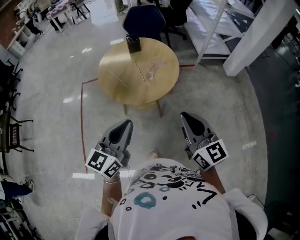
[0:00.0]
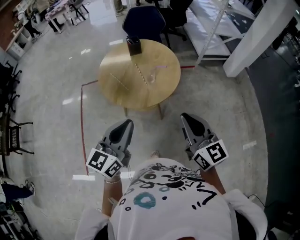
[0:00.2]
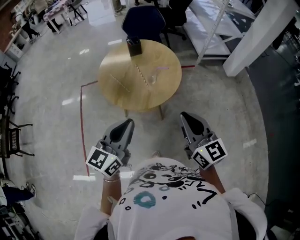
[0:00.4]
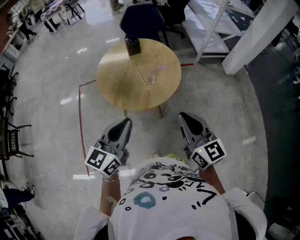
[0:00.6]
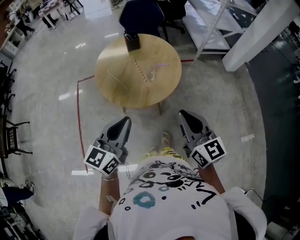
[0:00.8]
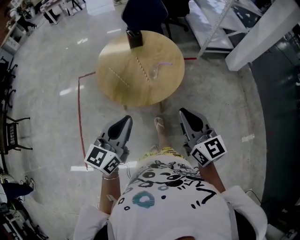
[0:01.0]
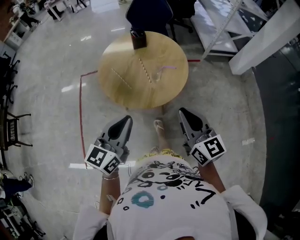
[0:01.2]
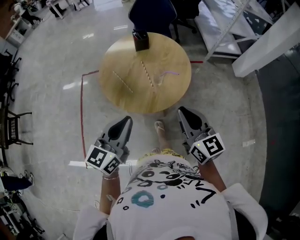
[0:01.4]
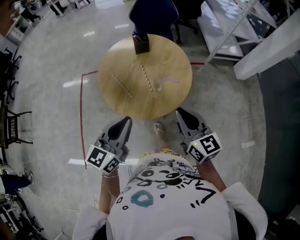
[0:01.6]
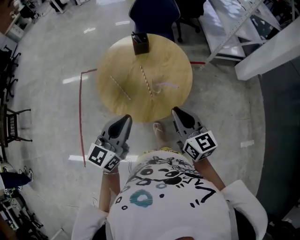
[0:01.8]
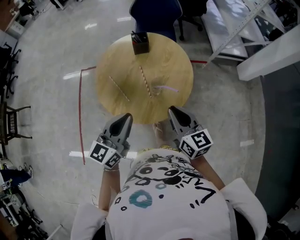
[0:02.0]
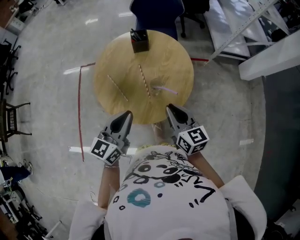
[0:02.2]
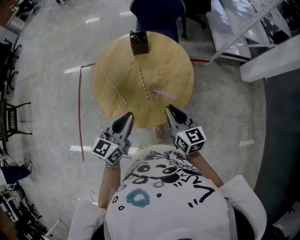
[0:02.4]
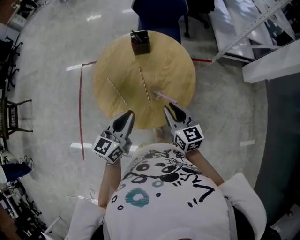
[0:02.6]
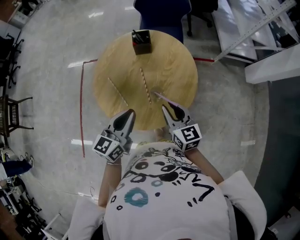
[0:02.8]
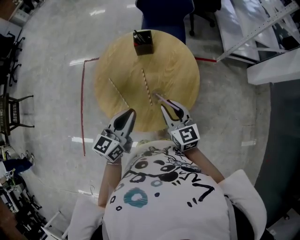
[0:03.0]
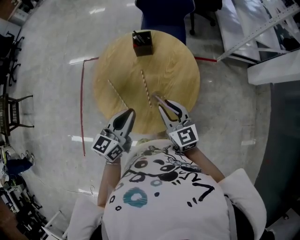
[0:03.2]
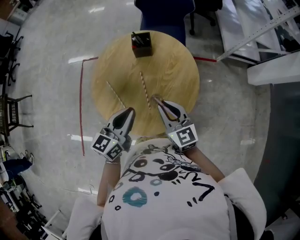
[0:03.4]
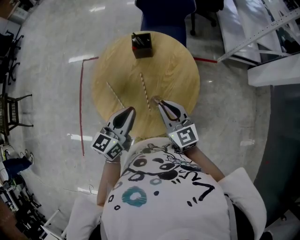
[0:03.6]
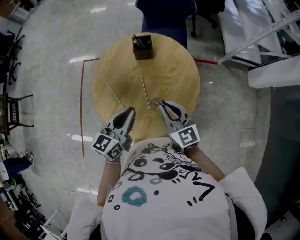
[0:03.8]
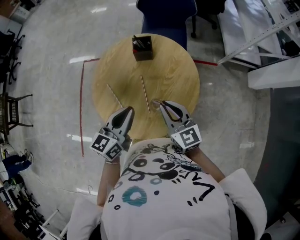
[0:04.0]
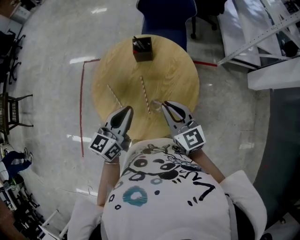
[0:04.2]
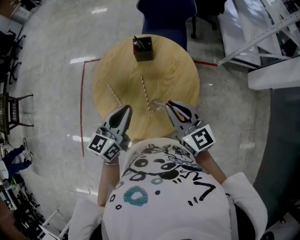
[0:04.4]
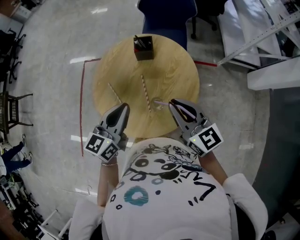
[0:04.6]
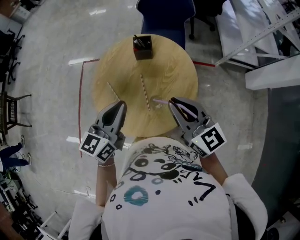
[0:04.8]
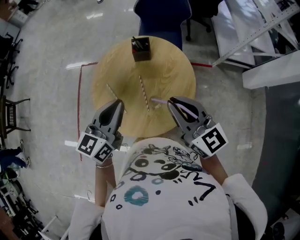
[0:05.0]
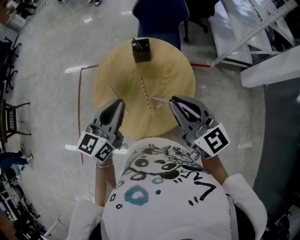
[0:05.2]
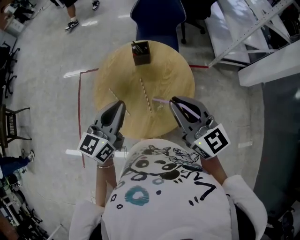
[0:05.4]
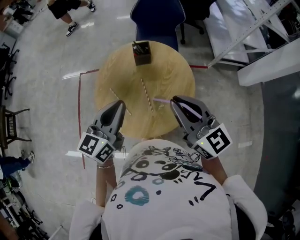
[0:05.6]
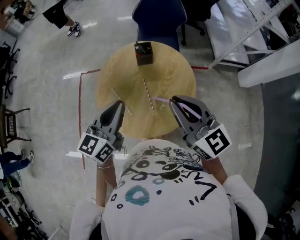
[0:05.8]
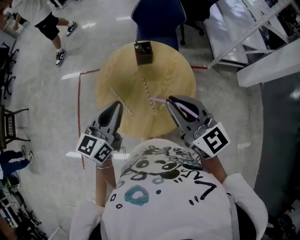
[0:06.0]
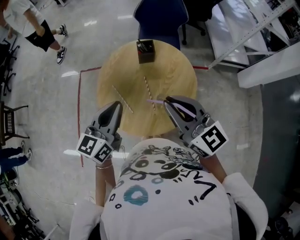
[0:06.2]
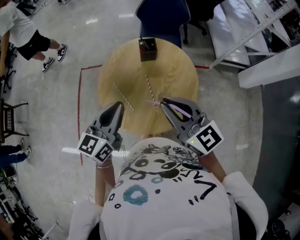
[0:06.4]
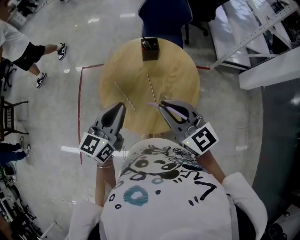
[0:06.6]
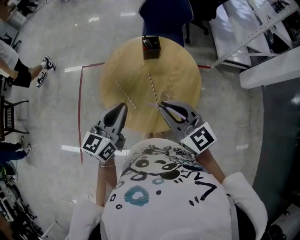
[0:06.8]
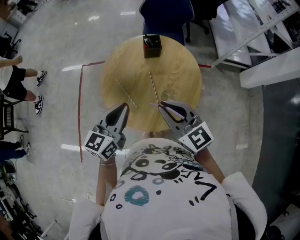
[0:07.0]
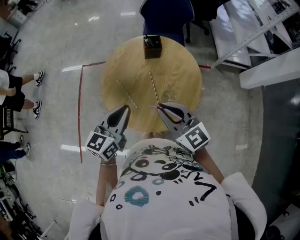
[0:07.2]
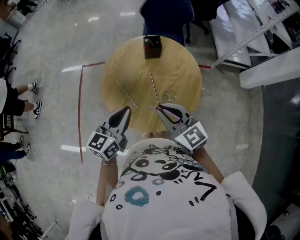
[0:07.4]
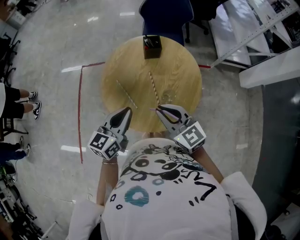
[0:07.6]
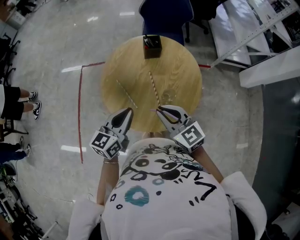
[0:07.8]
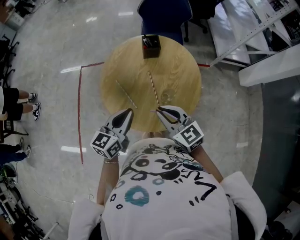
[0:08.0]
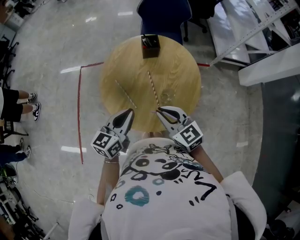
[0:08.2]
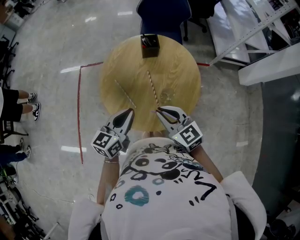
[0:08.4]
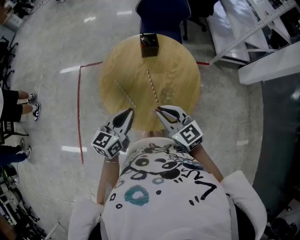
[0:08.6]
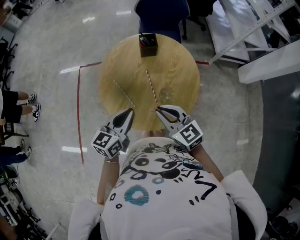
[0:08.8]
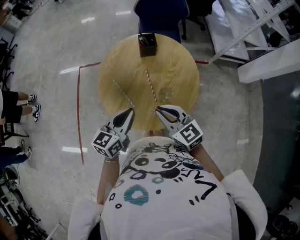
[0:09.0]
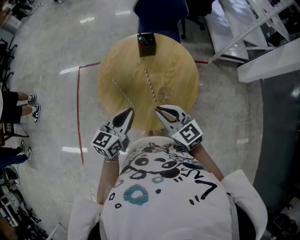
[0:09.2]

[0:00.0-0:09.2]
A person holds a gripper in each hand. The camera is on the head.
0:00.0 to 0:01.6: The left gripper is displaced forward by roughly 15 cm, while the right gripper travels forward and downward by approximately 20 cm.
0:01.6 to 0:03.0: Both grippers move forward and downward, about 20 cm.
0:03.0 to 0:04.6: The left gripper goes approximately 5 cm forward, while the right gripper heads upward, covering roughly 10 cm.
0:04.6 to 0:06.2: The right gripper heads upward and to the left, covering roughly 10 cm. Meanwhile the left gripper goes about 10 cm to the left and upward.
0:06.2 to 0:07.6: The right gripper moves downward and to the left, roughly 15 cm. Meanwhile the left gripper shifts approximately 10 cm downward.
0:07.6 to 0:09.2: There are only small adjustments of the grippers.

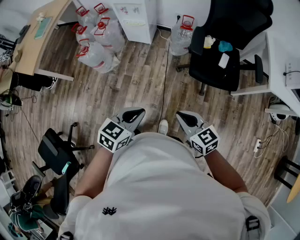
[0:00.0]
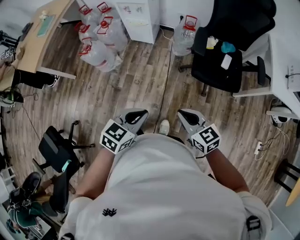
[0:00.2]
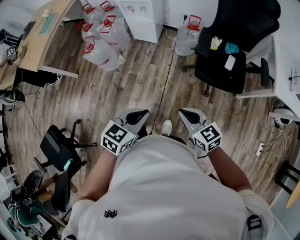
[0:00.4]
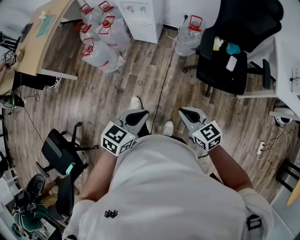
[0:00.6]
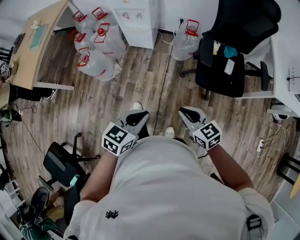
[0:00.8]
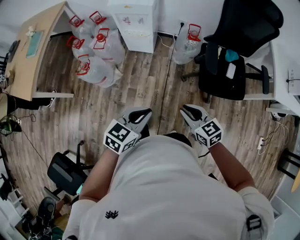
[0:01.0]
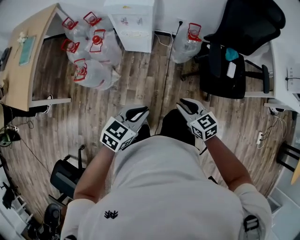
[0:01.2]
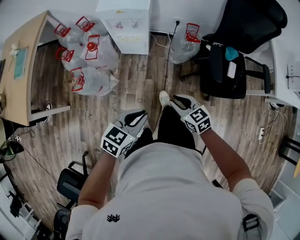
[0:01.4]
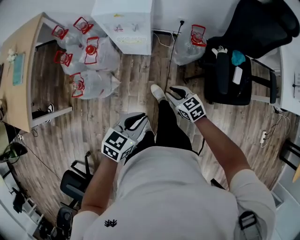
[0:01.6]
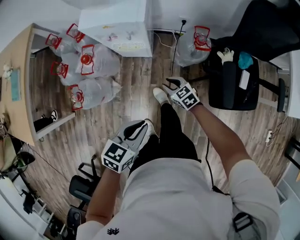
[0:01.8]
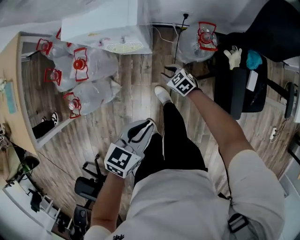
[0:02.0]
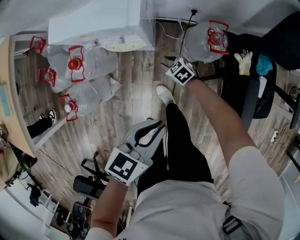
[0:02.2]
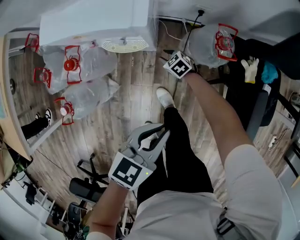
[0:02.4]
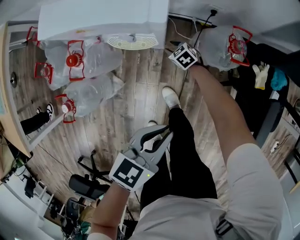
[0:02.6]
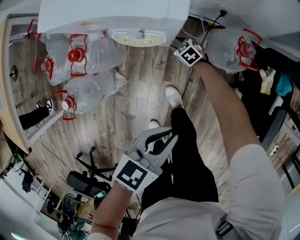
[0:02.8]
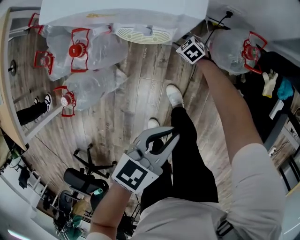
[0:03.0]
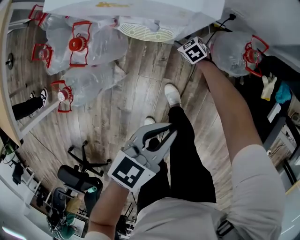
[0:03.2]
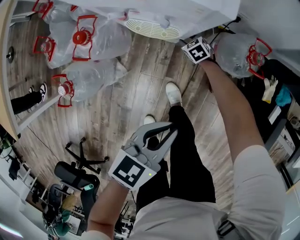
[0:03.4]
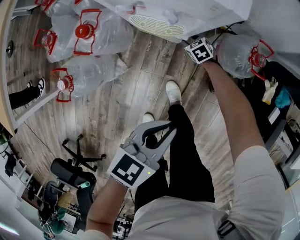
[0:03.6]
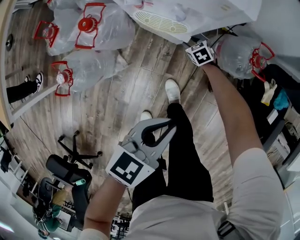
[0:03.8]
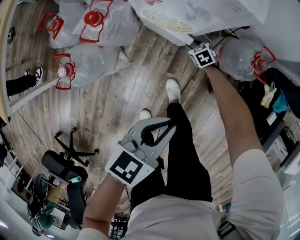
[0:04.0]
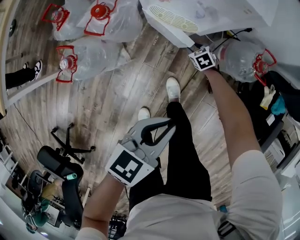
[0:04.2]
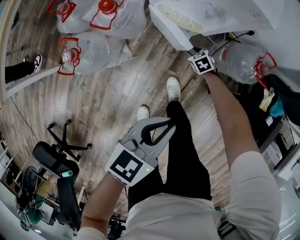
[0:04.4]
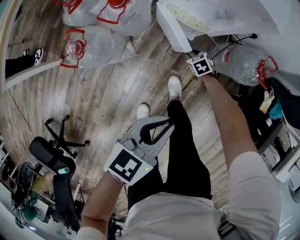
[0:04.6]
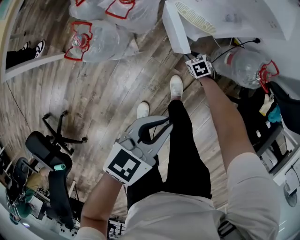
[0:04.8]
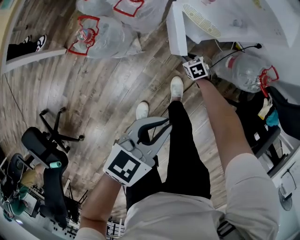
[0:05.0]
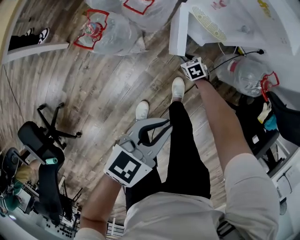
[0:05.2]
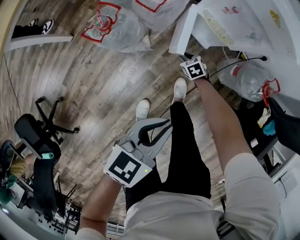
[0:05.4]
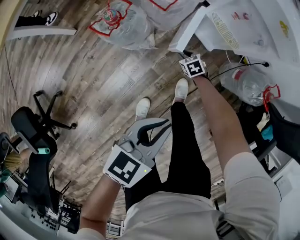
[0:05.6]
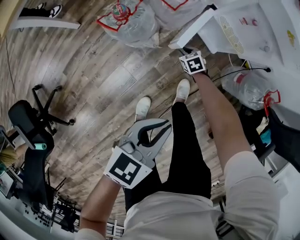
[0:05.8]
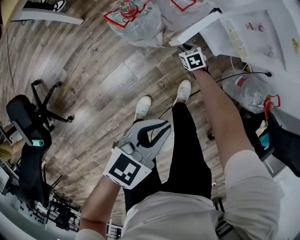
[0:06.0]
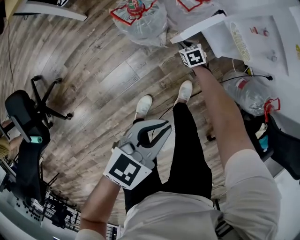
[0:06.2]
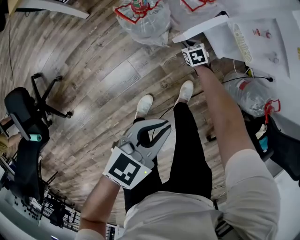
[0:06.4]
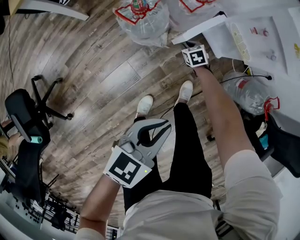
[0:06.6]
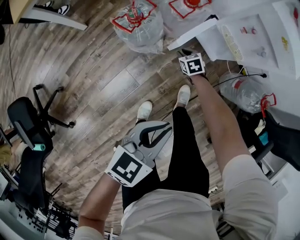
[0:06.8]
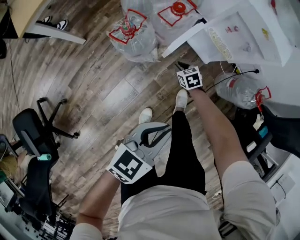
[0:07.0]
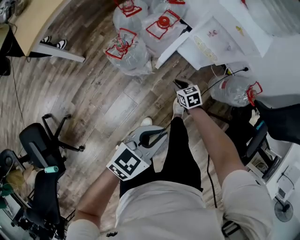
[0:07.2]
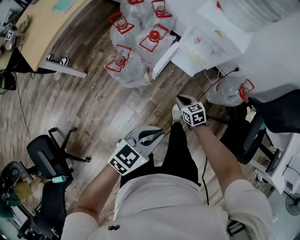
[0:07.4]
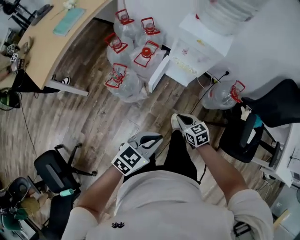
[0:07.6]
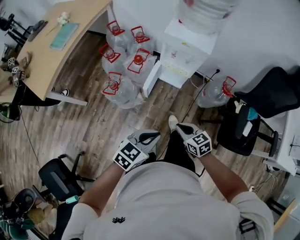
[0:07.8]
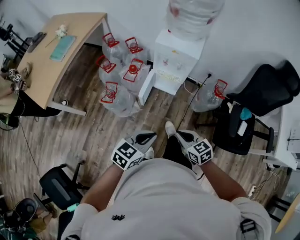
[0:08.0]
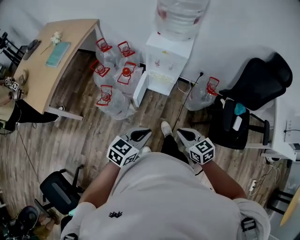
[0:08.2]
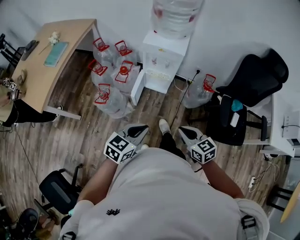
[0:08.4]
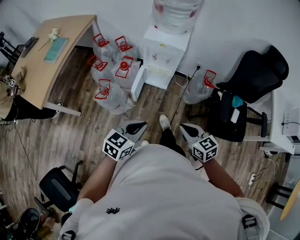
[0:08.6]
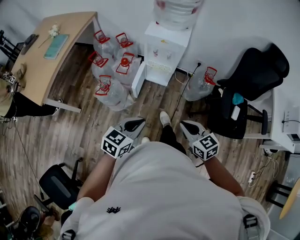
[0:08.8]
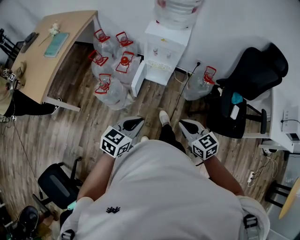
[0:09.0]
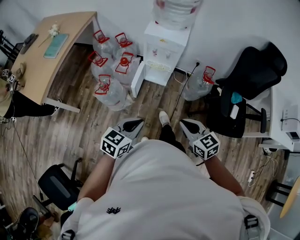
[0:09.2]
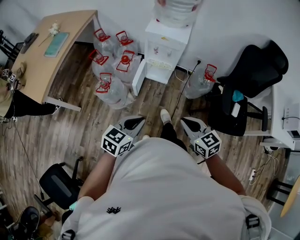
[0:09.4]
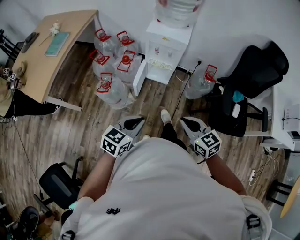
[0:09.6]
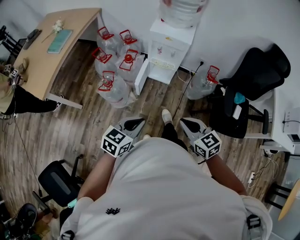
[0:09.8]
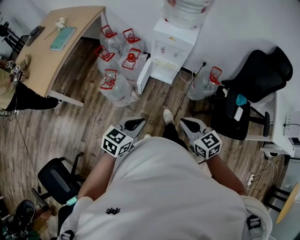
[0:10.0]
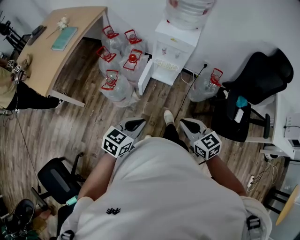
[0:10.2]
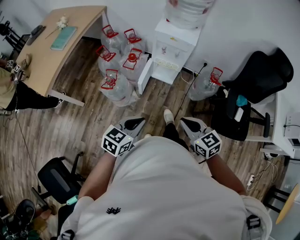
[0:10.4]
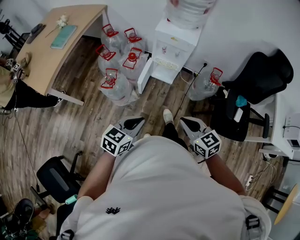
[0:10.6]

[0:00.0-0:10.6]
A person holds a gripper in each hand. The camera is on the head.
0:00.0 to 0:01.6: The right gripper shifts about 50 cm forward, to the left and downward; the left gripper moves forward and to the left, roughly 35 cm.
0:01.6 to 0:03.0: The left gripper is displaced forward and downward by about 25 cm; the right gripper goes about 60 cm downward and forward, turns by some 20 degrees, and opens.
0:03.0 to 0:04.6: The right gripper moves backward and to the left, about 15 cm. The left gripper is displaced to the left and backward by roughly 15 cm.
0:04.6 to 0:06.0: The right gripper shifts some 25 cm to the left, while the left gripper is displaced to the left and backward by roughly 15 cm.
0:06.0 to 0:07.6: The right gripper heads upward and backward, covering approximately 40 cm, turns by some 30 degrees, and closes. Meanwhile the left gripper travels upward by some 15 cm, and rotates roughly 30 degrees.
0:07.6 to 0:09.0: The right gripper travels upward and backward by some 25 cm. Meanwhile the left gripper travels upward by roughly 5 cm.
0:09.0 to 0:10.6: The grippers make only small movements.

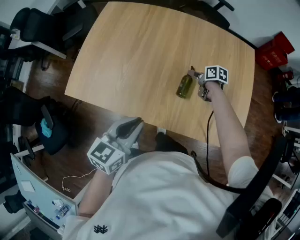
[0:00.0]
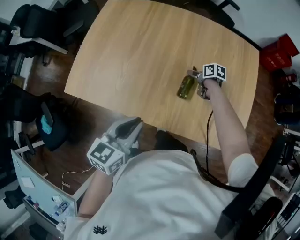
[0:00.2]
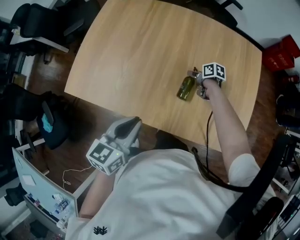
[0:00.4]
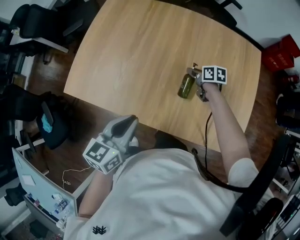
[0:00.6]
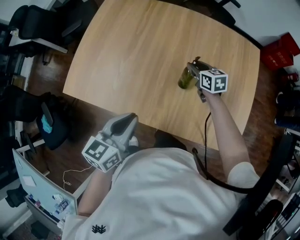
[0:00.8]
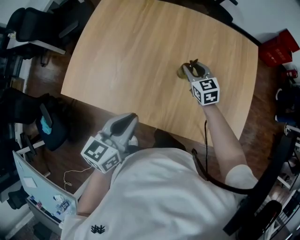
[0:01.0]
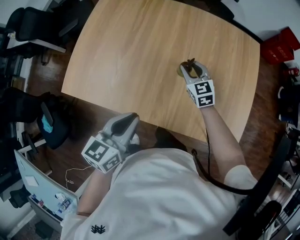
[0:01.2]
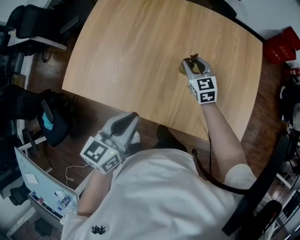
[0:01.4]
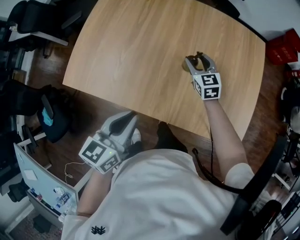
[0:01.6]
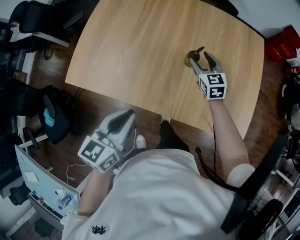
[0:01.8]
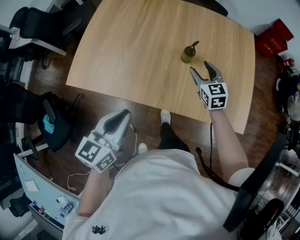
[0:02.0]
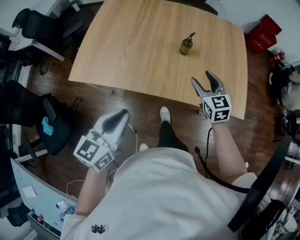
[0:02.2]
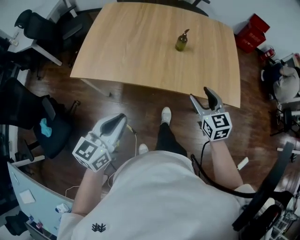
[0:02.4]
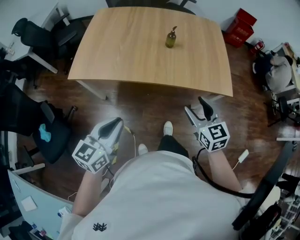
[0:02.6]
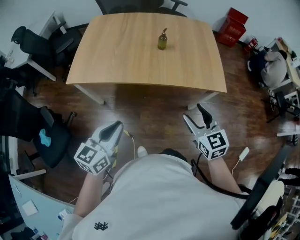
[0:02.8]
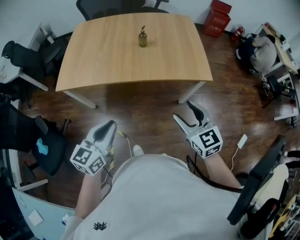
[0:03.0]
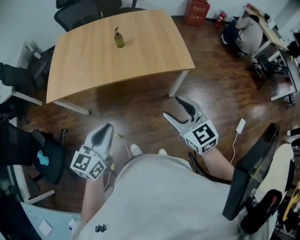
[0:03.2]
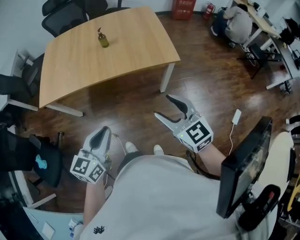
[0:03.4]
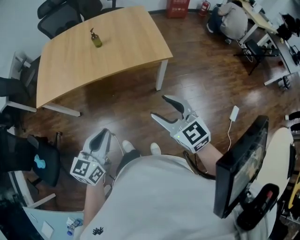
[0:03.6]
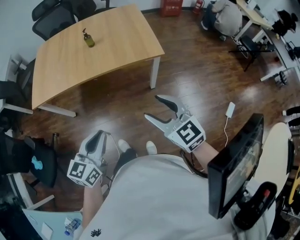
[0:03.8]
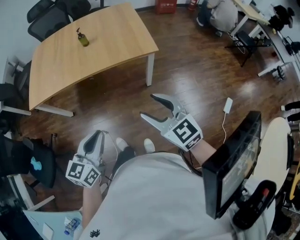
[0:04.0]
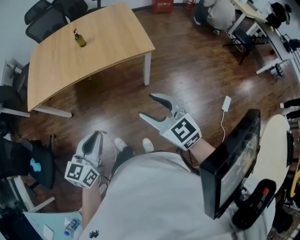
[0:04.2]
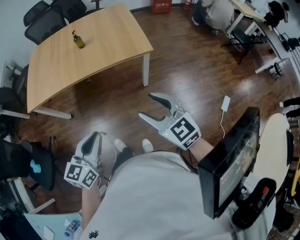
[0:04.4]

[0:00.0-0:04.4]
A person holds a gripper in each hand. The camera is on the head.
0:00.0 to 0:01.4: The right gripper shifts approximately 10 cm upward, rotates around the line of its fingers by about 50 degrees, counterclockwise from behind, and closes.
0:01.4 to 0:03.0: The right gripper heads backward, covering approximately 50 cm, and opens; the left gripper moves backward, approximately 25 cm, and rotates roughly 20 degrees.
0:03.0 to 0:04.4: The left gripper travels to the right and backward by about 20 cm. The right gripper is displaced backward and to the right by about 15 cm.
